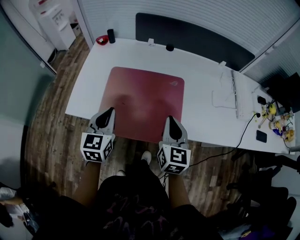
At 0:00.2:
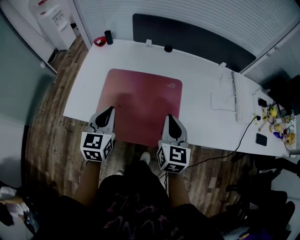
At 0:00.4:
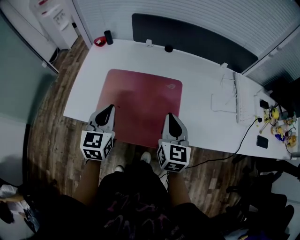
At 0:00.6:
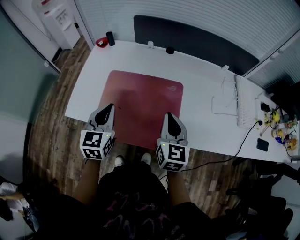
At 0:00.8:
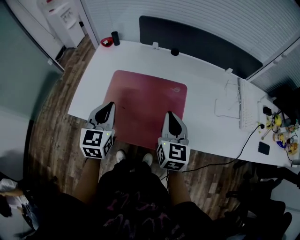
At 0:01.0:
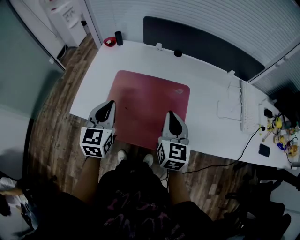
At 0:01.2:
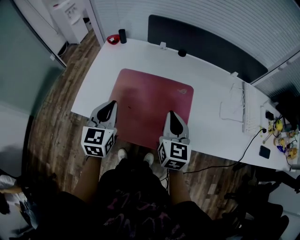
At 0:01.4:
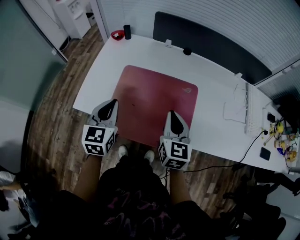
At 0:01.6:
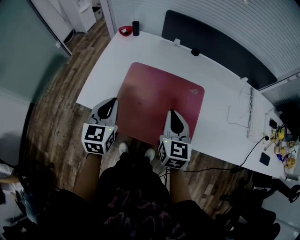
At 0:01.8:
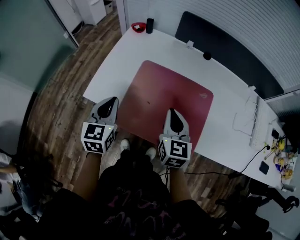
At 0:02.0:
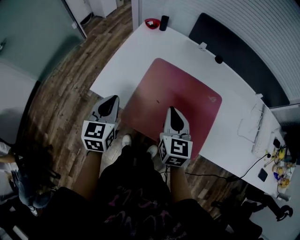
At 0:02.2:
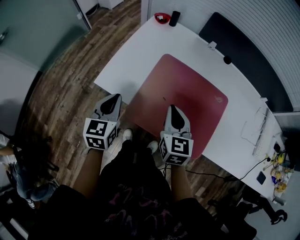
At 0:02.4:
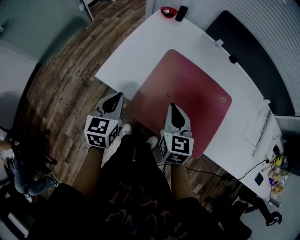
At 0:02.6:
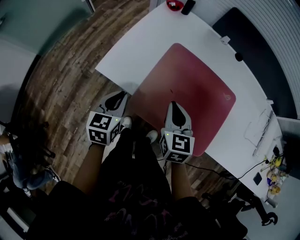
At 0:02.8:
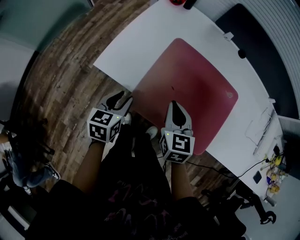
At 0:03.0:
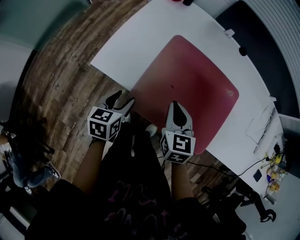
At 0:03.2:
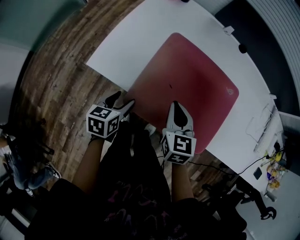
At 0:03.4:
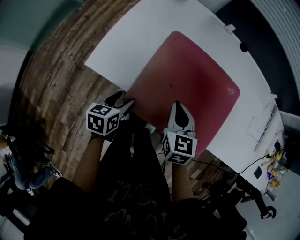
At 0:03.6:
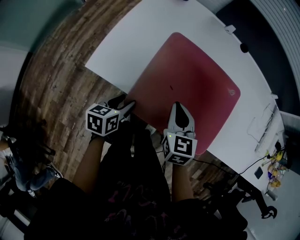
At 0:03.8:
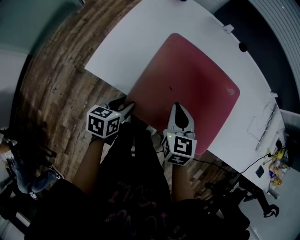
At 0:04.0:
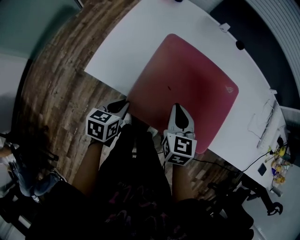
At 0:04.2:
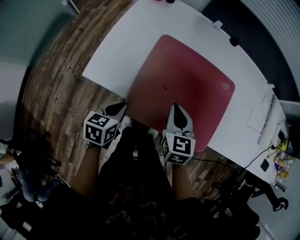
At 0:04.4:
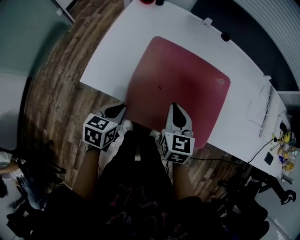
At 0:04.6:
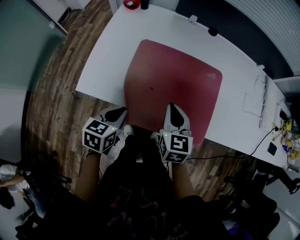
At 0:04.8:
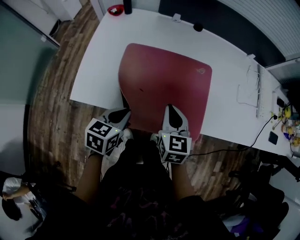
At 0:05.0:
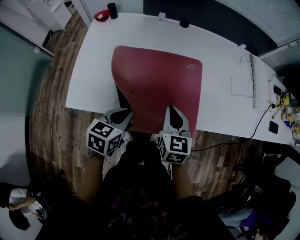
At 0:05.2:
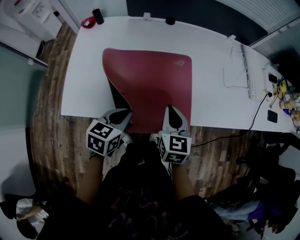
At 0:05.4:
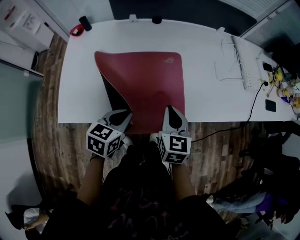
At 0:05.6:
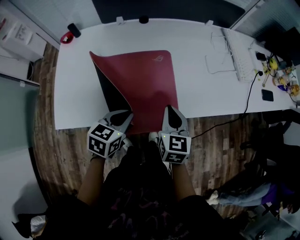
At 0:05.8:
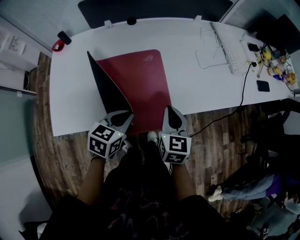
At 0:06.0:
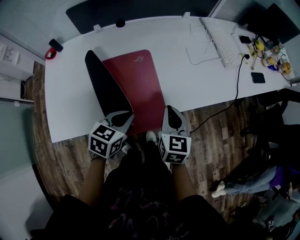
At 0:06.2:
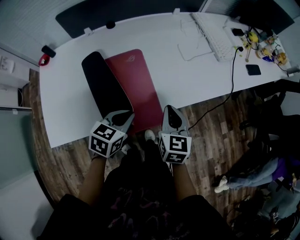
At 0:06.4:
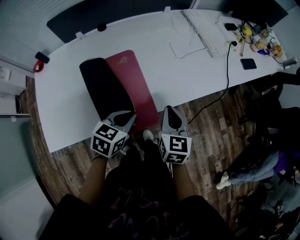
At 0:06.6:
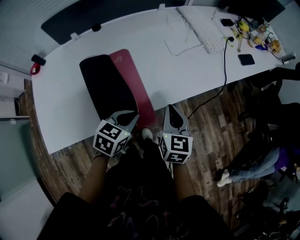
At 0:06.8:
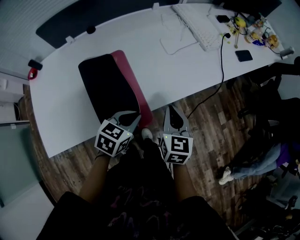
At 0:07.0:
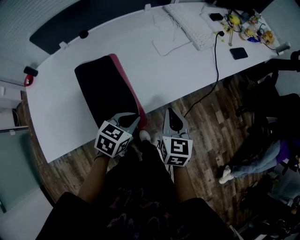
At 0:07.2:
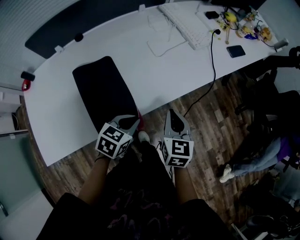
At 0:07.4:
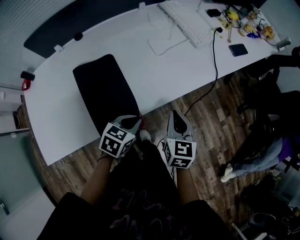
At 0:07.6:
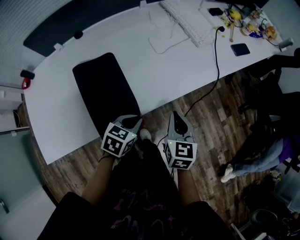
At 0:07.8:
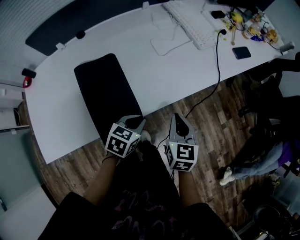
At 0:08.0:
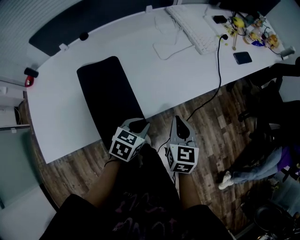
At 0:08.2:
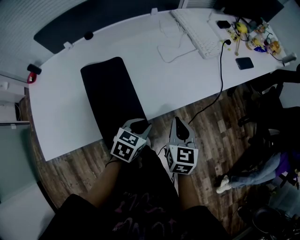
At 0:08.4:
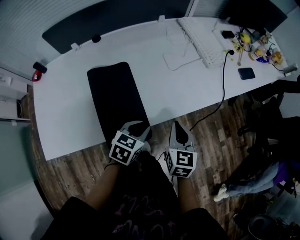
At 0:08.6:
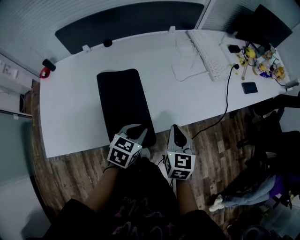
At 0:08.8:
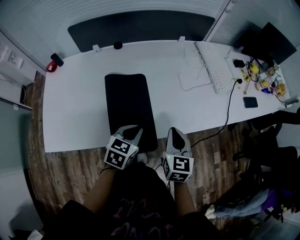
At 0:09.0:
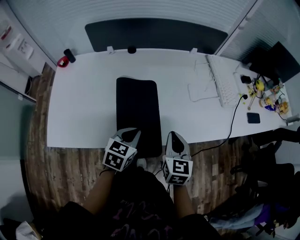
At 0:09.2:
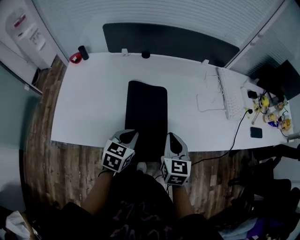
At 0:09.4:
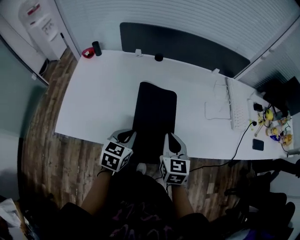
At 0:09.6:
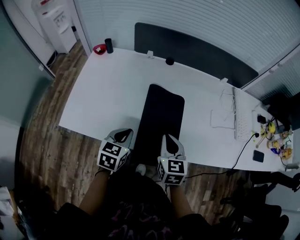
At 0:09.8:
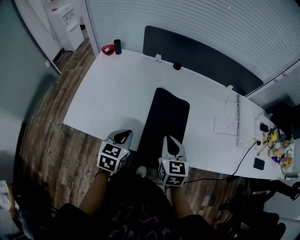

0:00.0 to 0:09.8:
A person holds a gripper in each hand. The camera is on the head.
0:00.0 to 0:01.4: The right gripper goes approximately 5 cm forward, while the left gripper ends up roughly 5 cm from where it was.
0:01.4 to 0:02.8: The right gripper moves to the left and downward, approximately 20 cm, and rotates approximately 20 degrees. Meanwhile the left gripper goes approximately 20 cm downward and to the left, changes its angle by roughly 30 degrees, and opens up.
0:02.8 to 0:04.2: The left gripper closes its fingers.
0:04.2 to 0:05.6: The right gripper moves about 20 cm, and rotates roughly 30 degrees. Meanwhile the left gripper moves about 25 cm, and changes its angle by about 40 degrees.
0:05.6 to 0:07.0: The left gripper heads to the right and forward, covering some 20 cm, and rotates roughly 30 degrees. The right gripper travels to the right by about 15 cm.
0:07.0 to 0:08.4: The grippers make only small movements.
0:08.4 to 0:09.8: The left gripper shifts by approximately 25 cm, and changes its angle by about 40 degrees. Meanwhile the right gripper shifts by roughly 25 cm, and rotates roughly 40 degrees.

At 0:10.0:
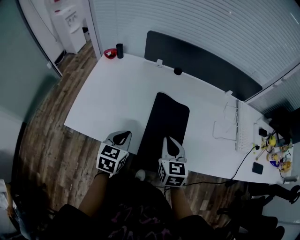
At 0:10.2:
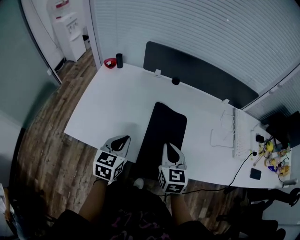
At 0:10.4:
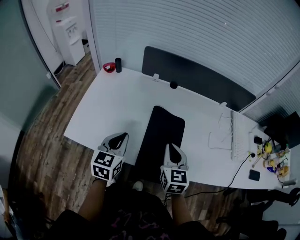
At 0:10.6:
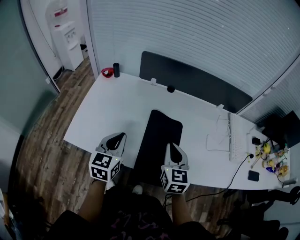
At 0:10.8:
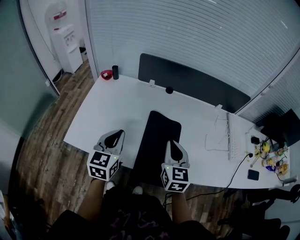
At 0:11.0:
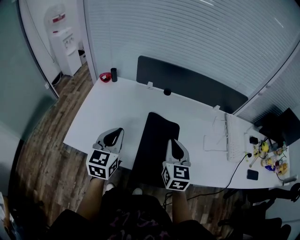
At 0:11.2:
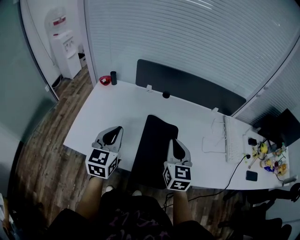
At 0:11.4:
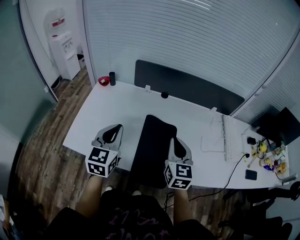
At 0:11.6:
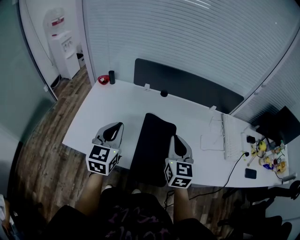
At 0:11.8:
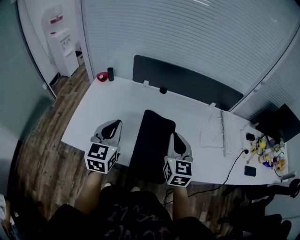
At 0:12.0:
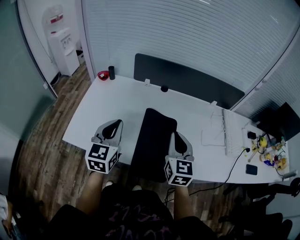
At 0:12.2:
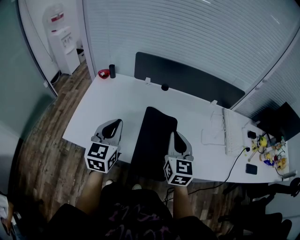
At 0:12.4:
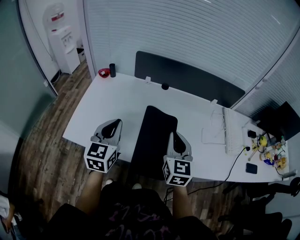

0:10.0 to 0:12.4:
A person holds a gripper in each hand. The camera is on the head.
0:10.0 to 0:11.2: The two grippers go some 15 cm upward. The left gripper swivels approximately 20 degrees.
0:11.2 to 0:12.4: The grippers move only a little.

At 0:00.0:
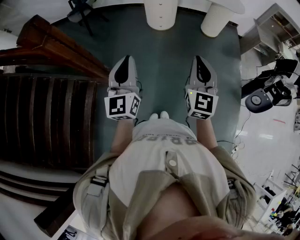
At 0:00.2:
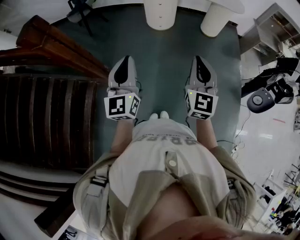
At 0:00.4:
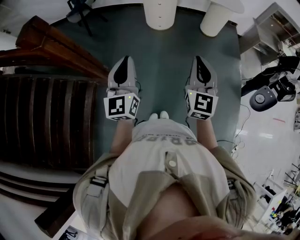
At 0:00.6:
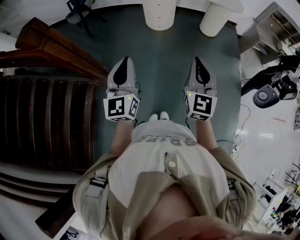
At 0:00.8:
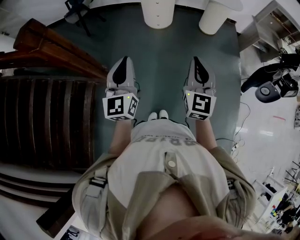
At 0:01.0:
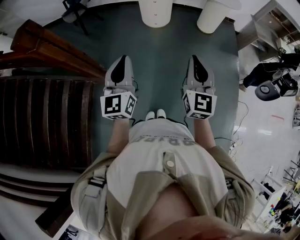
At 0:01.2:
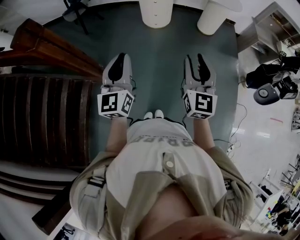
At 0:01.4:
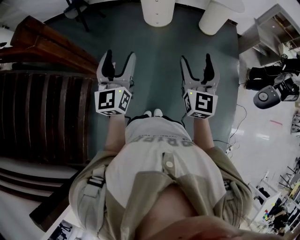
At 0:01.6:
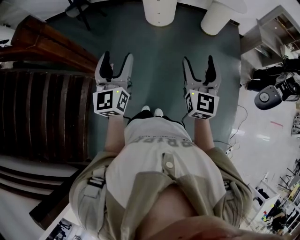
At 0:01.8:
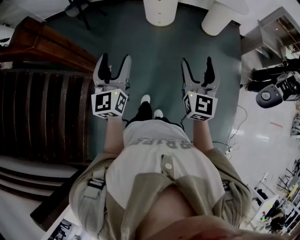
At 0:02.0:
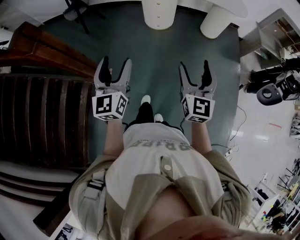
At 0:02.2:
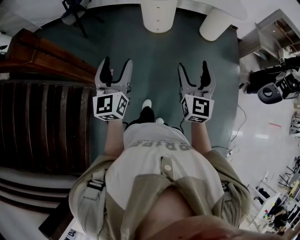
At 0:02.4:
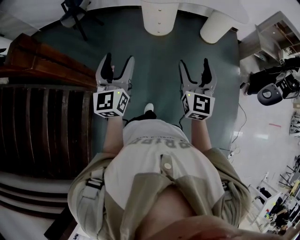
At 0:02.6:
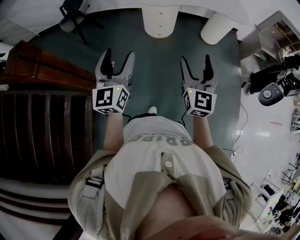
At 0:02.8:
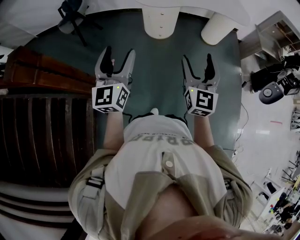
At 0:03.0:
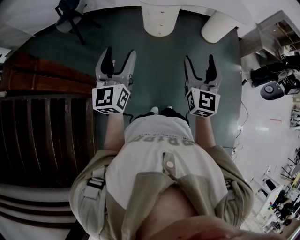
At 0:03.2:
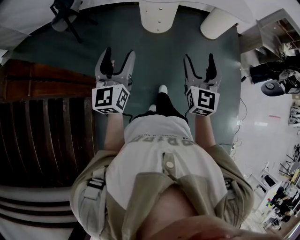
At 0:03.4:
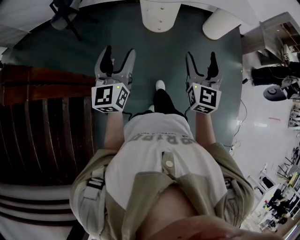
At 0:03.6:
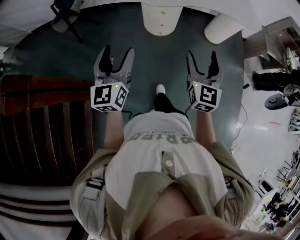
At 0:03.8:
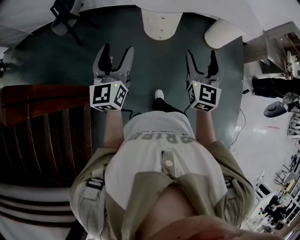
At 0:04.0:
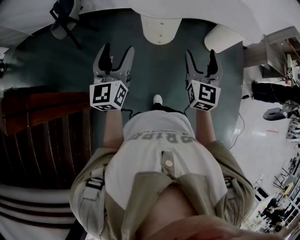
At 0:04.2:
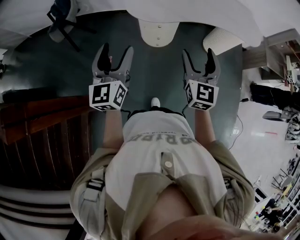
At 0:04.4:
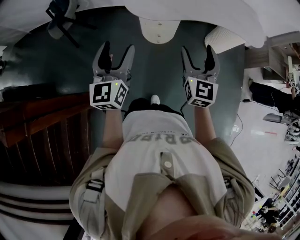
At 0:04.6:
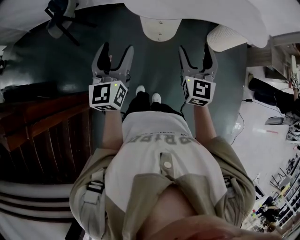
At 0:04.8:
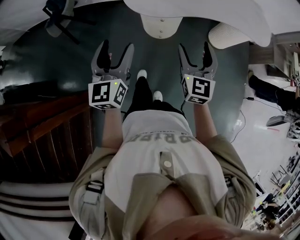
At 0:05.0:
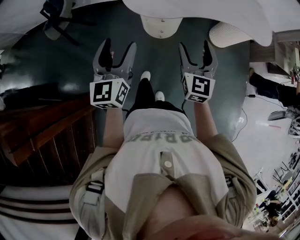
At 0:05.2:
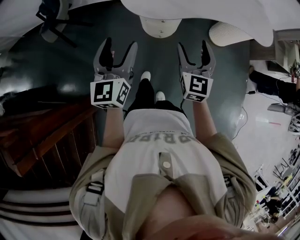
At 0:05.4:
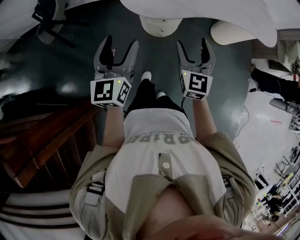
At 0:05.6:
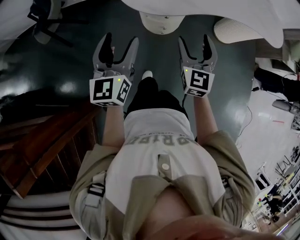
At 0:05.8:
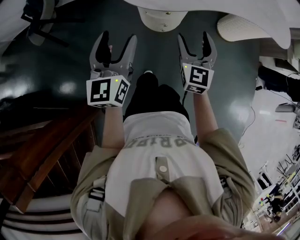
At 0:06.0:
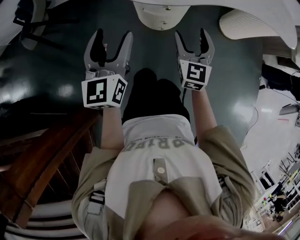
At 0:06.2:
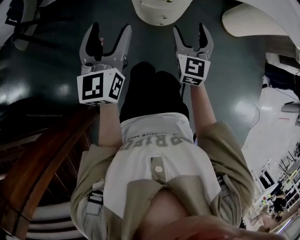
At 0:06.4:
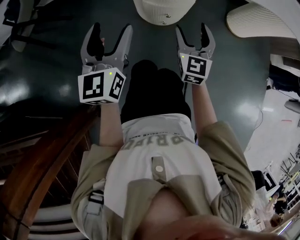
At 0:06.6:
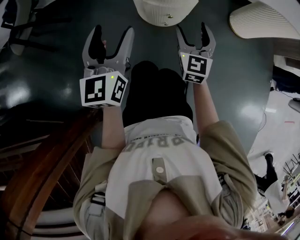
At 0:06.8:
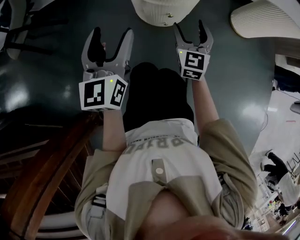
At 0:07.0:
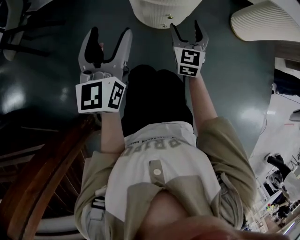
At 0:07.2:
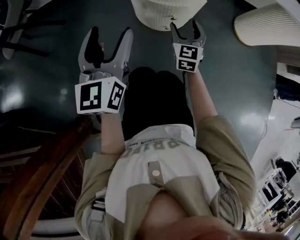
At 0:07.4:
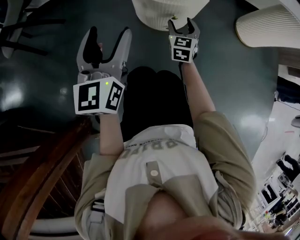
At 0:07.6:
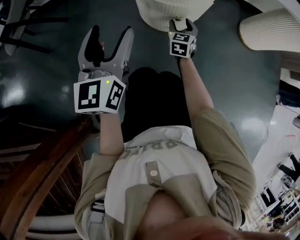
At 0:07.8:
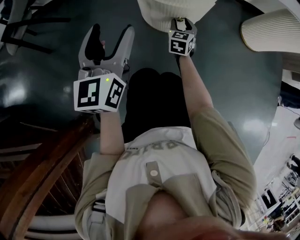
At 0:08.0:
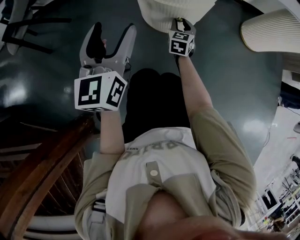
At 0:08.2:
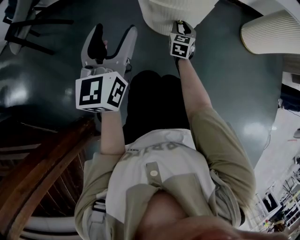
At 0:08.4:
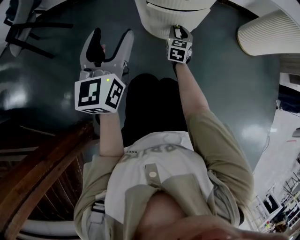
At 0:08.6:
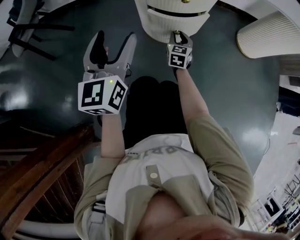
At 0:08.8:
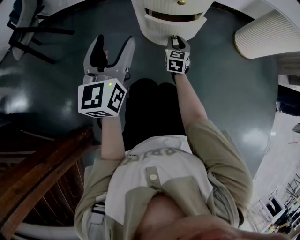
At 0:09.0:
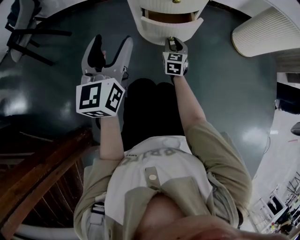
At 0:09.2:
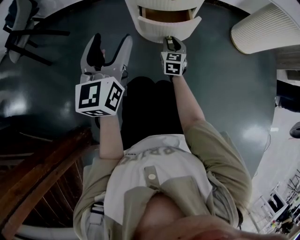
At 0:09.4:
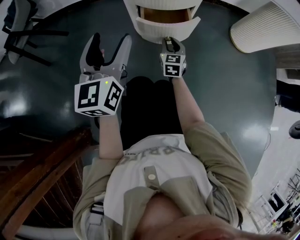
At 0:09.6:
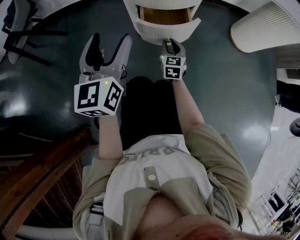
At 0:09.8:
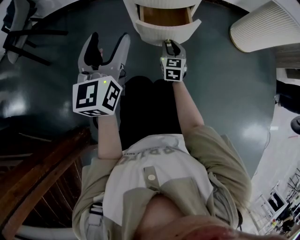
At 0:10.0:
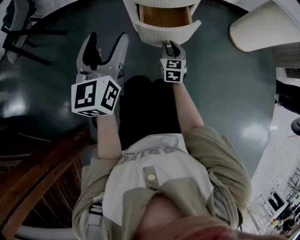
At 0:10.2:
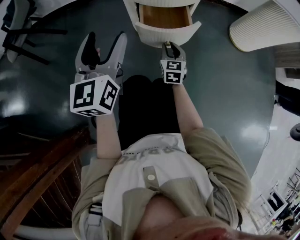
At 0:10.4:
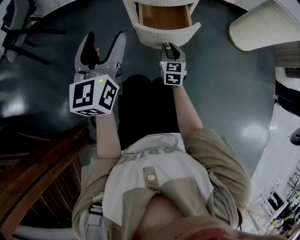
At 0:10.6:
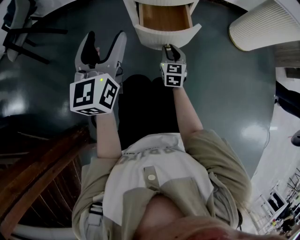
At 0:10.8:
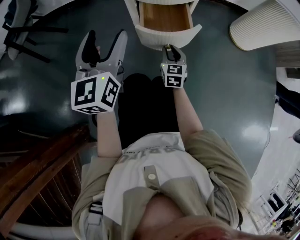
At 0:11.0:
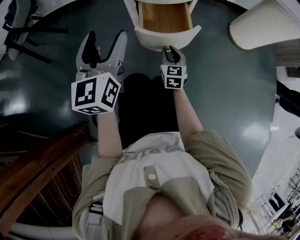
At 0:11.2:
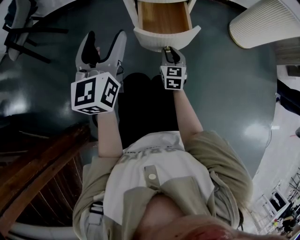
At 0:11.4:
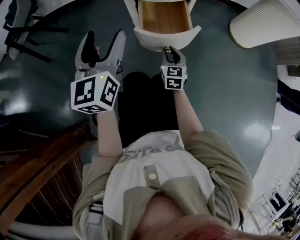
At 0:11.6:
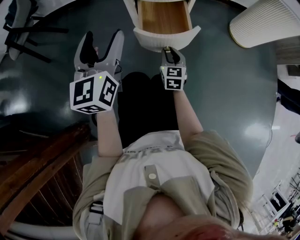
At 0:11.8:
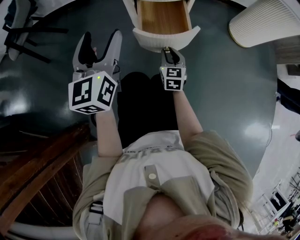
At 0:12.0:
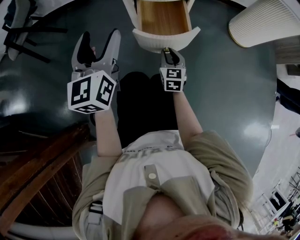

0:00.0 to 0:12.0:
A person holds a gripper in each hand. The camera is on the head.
0:00.0 to 0:01.6: The left gripper opens. The right gripper heads to the right, covering some 5 cm, and opens its fingers.
0:01.6 to 0:03.0: Both grippers travel together forward and to the left, some 25 cm.
0:03.0 to 0:04.4: The grippers both shift forward by about 30 cm.
0:04.4 to 0:06.0: Both grippers move downward and forward, some 35 cm.
0:06.0 to 0:07.6: The right gripper moves downward, roughly 40 cm, while the left gripper heads downward, covering roughly 25 cm.
0:07.6 to 0:09.0: The right gripper closes its fingers.
0:09.0 to 0:10.4: The right gripper moves backward, approximately 5 cm.
0:10.4 to 0:12.0: The right gripper heads backward, covering some 5 cm.
